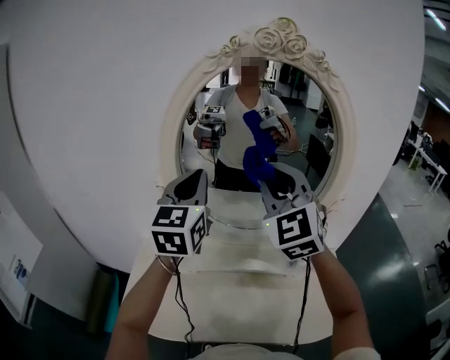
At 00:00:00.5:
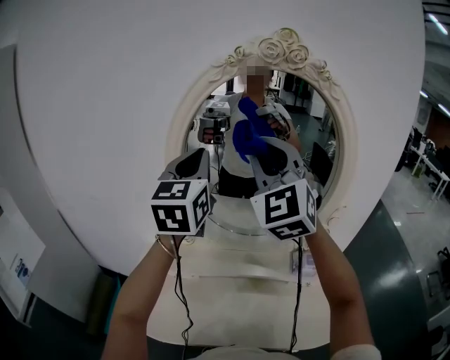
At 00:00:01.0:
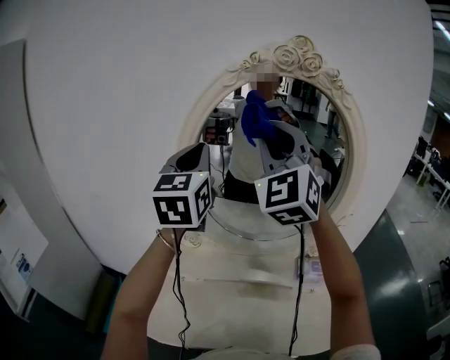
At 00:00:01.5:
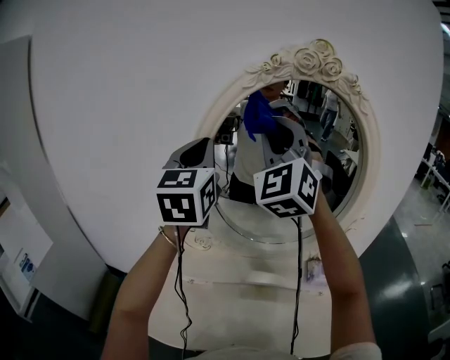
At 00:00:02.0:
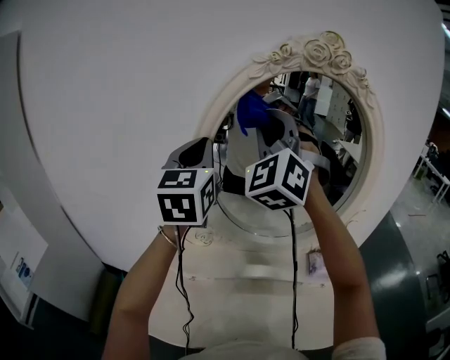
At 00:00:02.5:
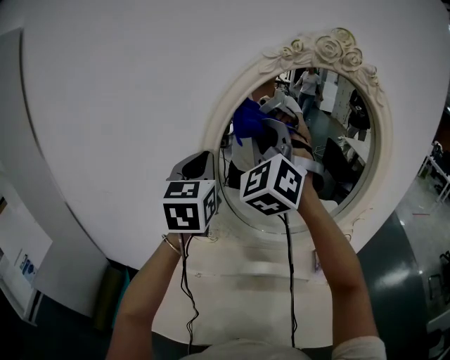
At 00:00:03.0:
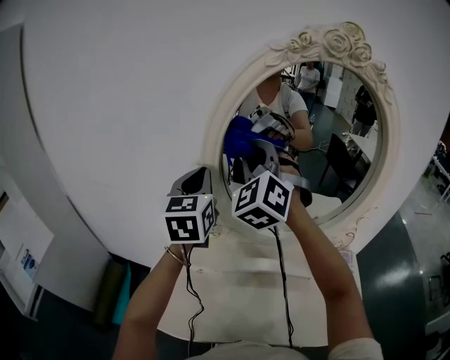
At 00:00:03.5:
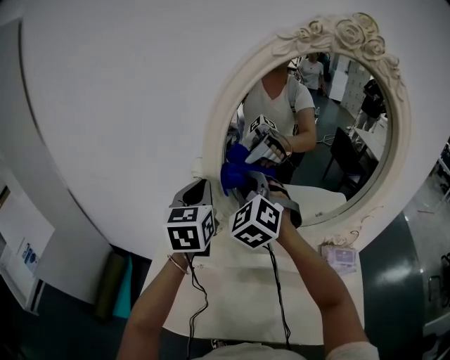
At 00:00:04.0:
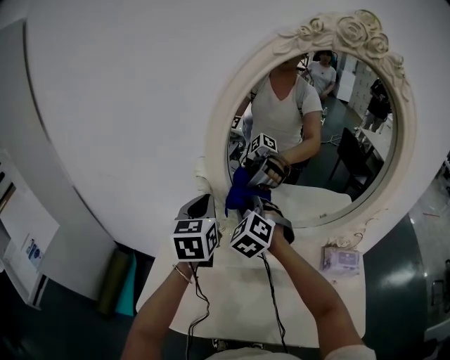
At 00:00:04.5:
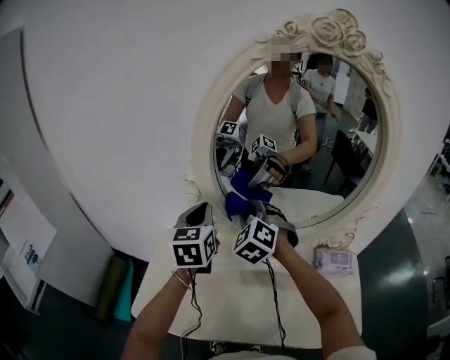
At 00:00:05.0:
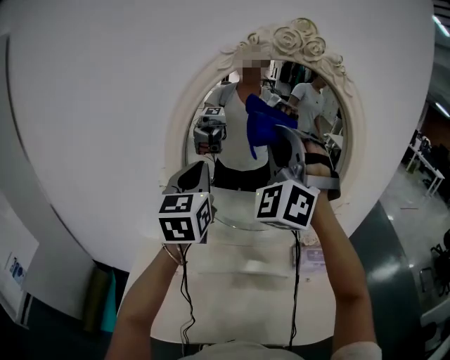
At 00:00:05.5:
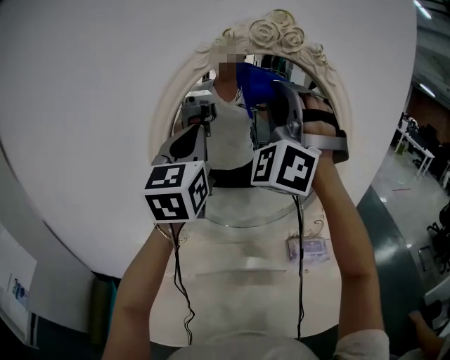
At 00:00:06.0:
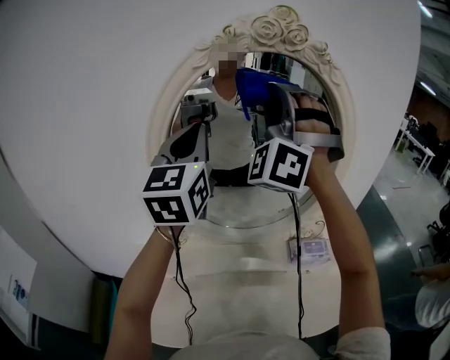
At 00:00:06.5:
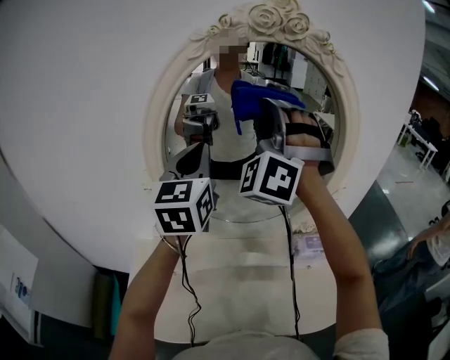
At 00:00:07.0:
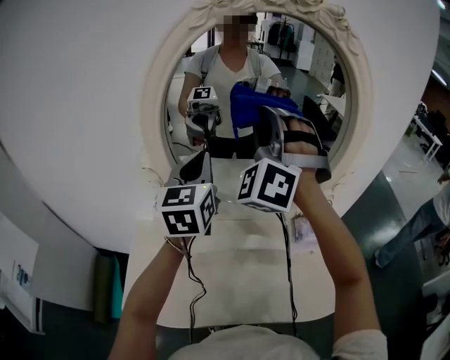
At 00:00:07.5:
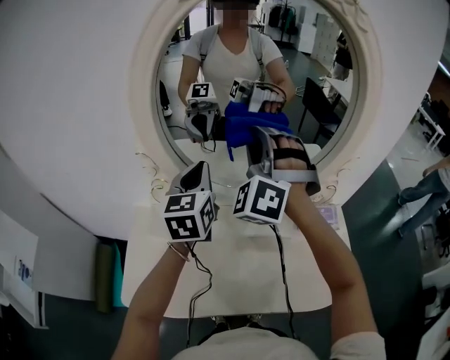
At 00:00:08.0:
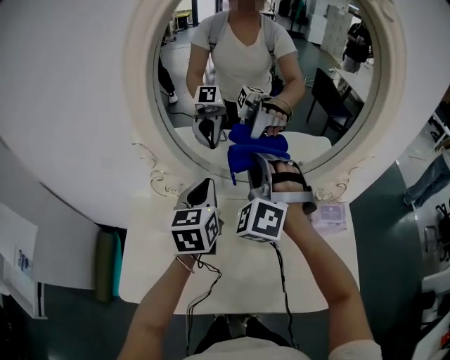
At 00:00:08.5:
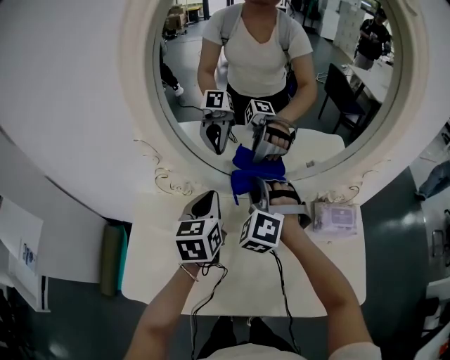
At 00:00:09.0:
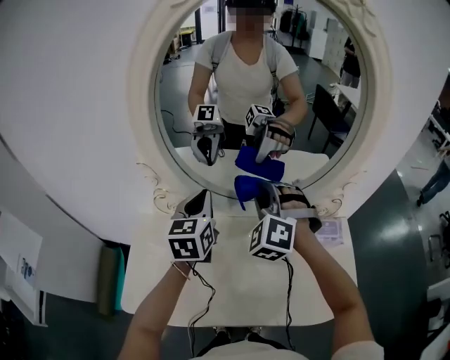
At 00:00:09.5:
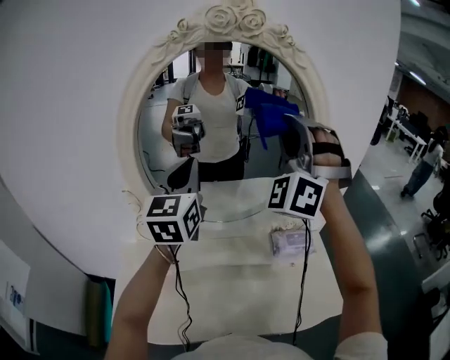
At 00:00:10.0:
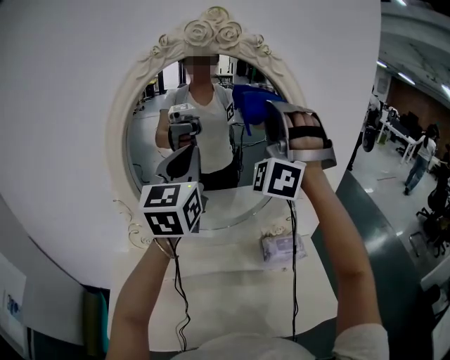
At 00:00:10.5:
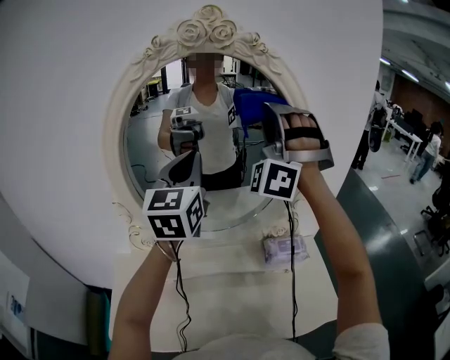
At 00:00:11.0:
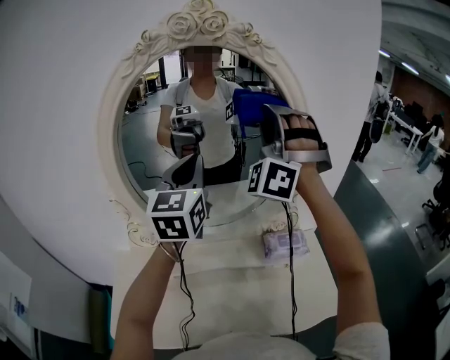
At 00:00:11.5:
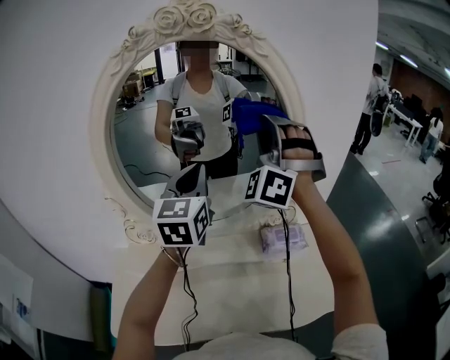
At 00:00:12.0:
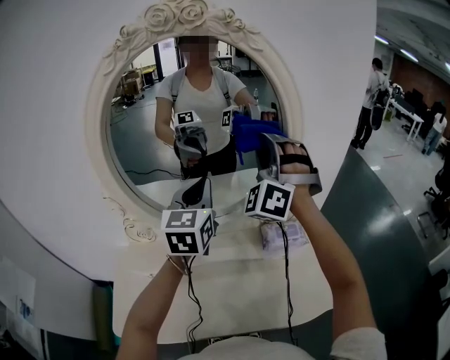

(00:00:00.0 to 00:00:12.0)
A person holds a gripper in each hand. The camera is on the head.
00:00:00.0 - 00:00:02.0: The left gripper goes roughly 10 cm to the left and upward. The right gripper heads upward, to the left and forward, covering approximately 15 cm, and swivels about 30 degrees.
00:00:02.0 - 00:00:04.0: The right gripper moves downward, roughly 35 cm, and angles its fingers downward, by about 40 degrees, while the left gripper travels downward by approximately 20 cm, and changes its angle by approximately 20 degrees.
00:00:04.0 - 00:00:06.0: Both grippers travel together upward and to the right, approximately 35 cm. The left gripper changes its angle by some 30 degrees. The right gripper tilts its fingers roughly 50 degrees upward.
00:00:06.0 - 00:00:08.0: The two grippers go roughly 35 cm downward. The right gripper points its fingers some 40 degrees further downward. Meanwhile the left gripper tilts its fingers some 30 degrees downward.
00:00:08.0 - 00:00:10.0: The left gripper travels upward by roughly 30 cm, and rotates approximately 30 degrees, while the right gripper heads upward and to the right, covering some 35 cm, and points its fingers some 40 degrees further upward.
00:00:10.0 - 00:00:12.0: The left gripper goes some 15 cm downward and to the right. Meanwhile the right gripper moves downward, roughly 15 cm, and turns by some 20 degrees.

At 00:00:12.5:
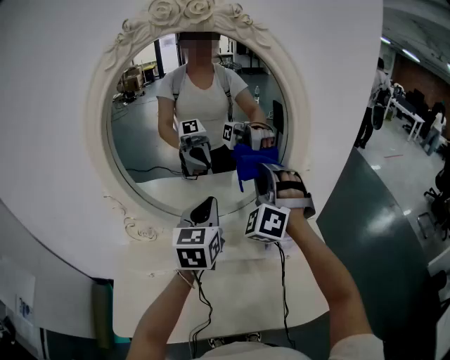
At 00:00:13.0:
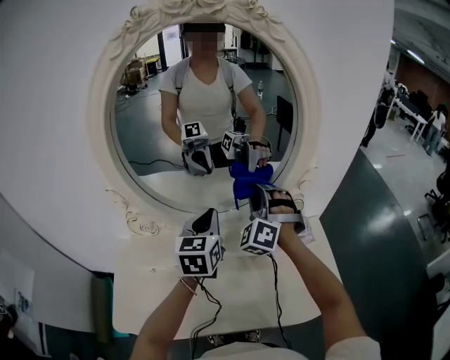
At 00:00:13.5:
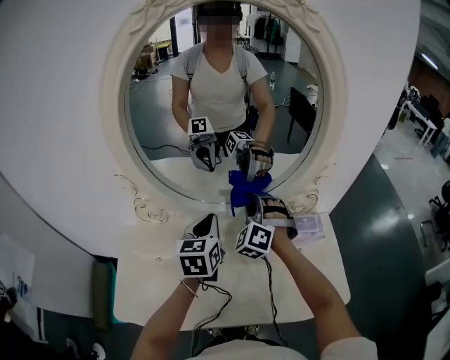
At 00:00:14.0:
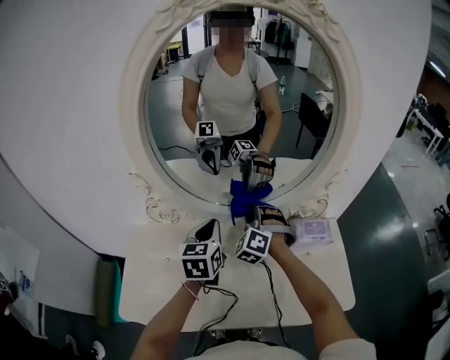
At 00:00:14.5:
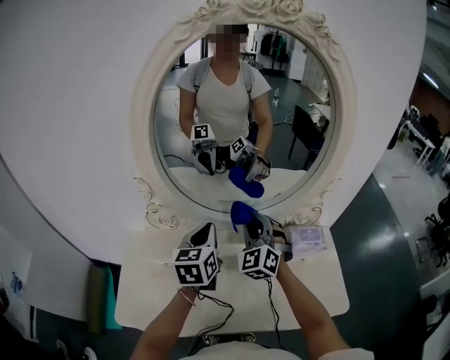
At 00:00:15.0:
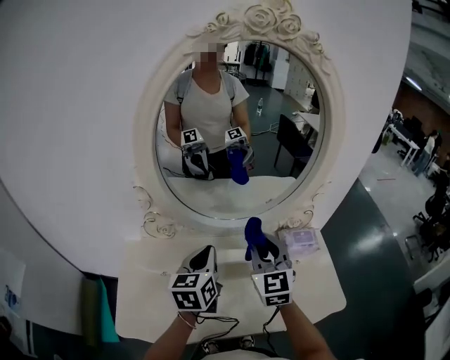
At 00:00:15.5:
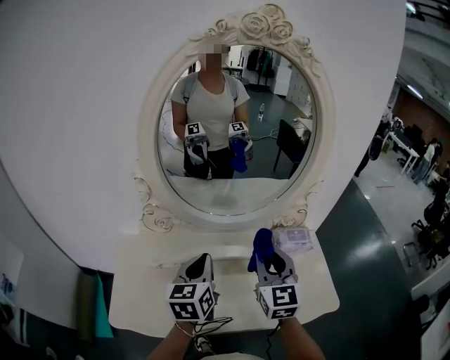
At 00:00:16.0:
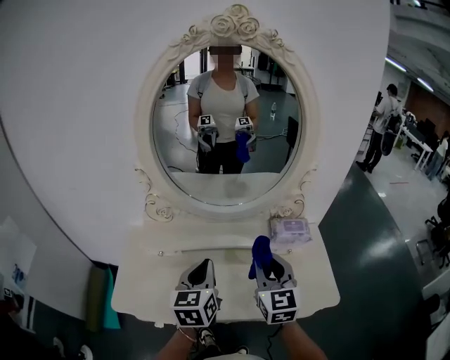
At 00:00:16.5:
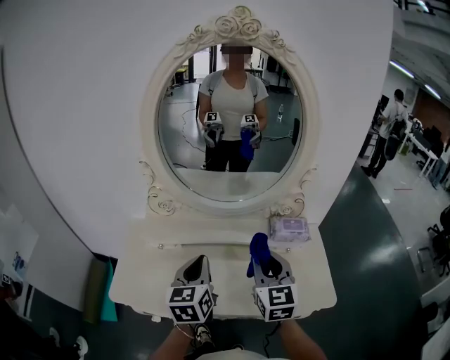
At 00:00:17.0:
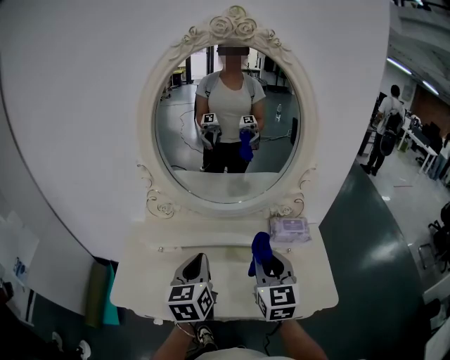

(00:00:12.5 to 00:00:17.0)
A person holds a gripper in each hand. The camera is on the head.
00:00:12.5 - 00:00:14.5: The right gripper is displaced downward, to the left and backward by roughly 20 cm, and rotates approximately 30 degrees; the left gripper goes roughly 15 cm to the left, downward and backward.
00:00:14.5 - 00:00:17.0: The right gripper travels backward and to the right by approximately 20 cm, and rotates around the line of its fingers by some 40 degrees, clockwise from behind. Meanwhile the left gripper heads backward, covering some 15 cm.

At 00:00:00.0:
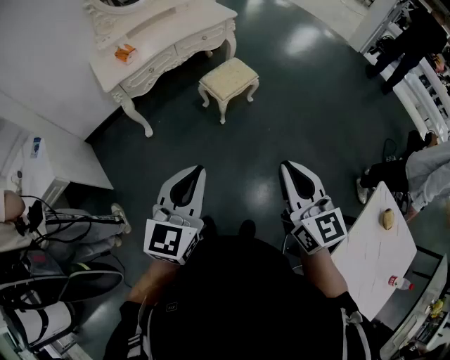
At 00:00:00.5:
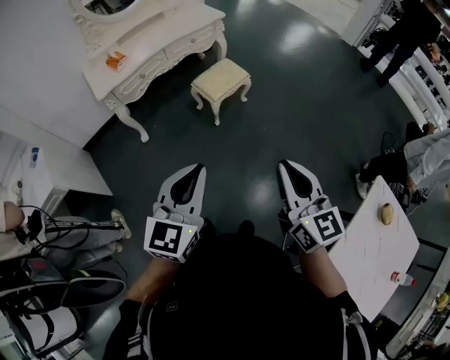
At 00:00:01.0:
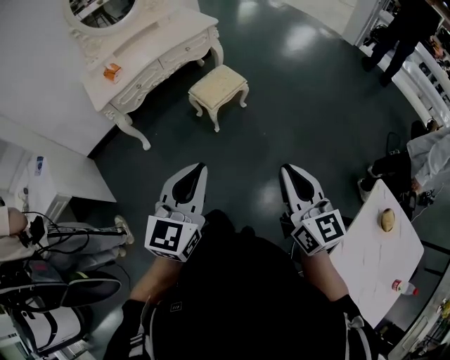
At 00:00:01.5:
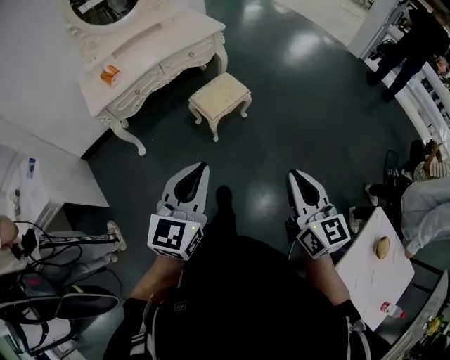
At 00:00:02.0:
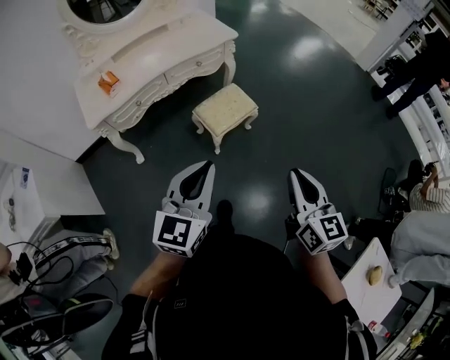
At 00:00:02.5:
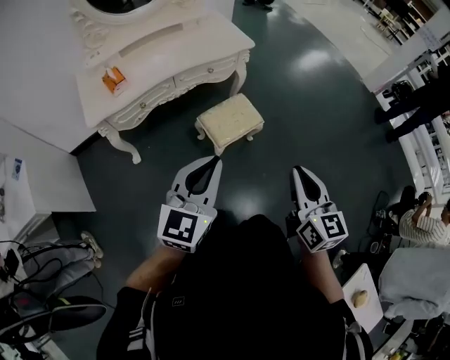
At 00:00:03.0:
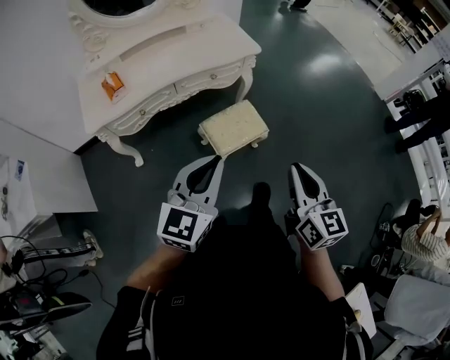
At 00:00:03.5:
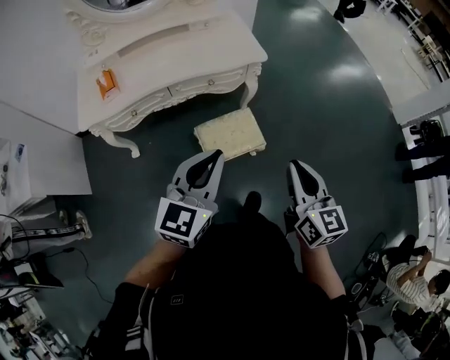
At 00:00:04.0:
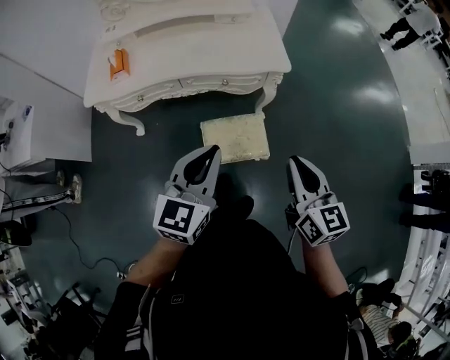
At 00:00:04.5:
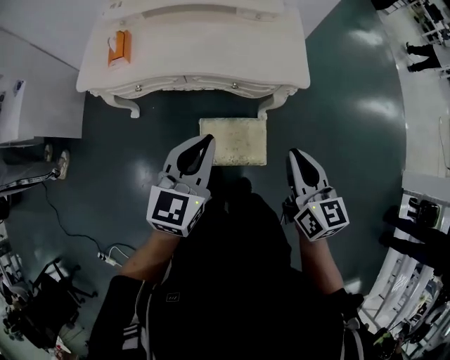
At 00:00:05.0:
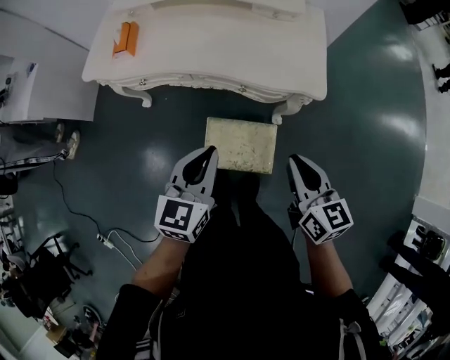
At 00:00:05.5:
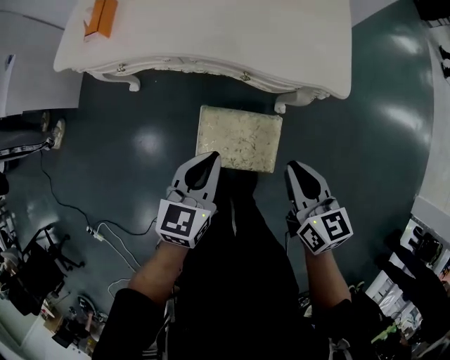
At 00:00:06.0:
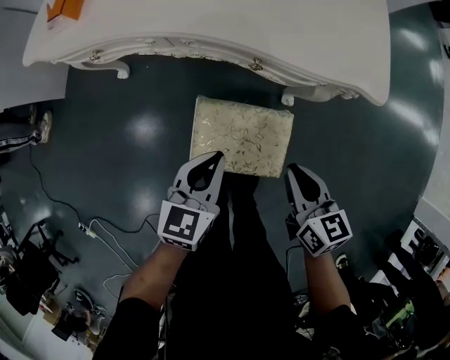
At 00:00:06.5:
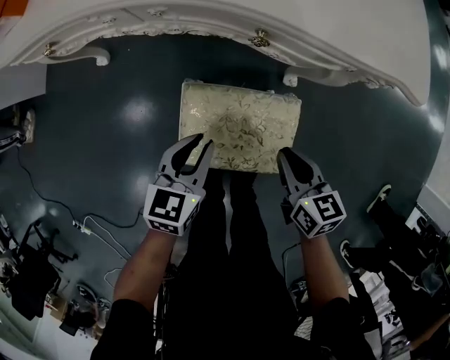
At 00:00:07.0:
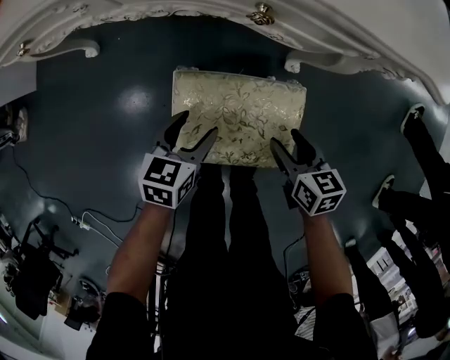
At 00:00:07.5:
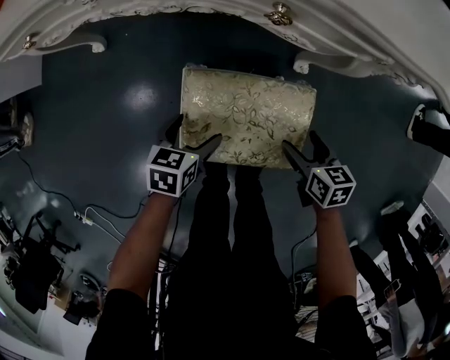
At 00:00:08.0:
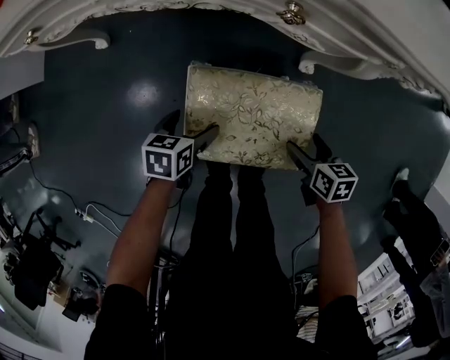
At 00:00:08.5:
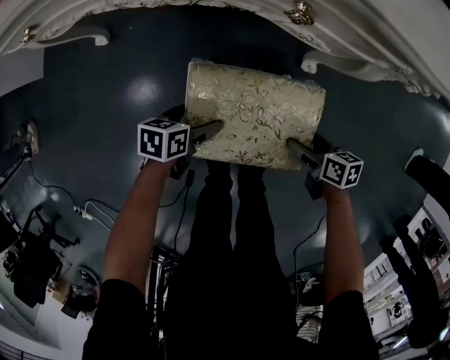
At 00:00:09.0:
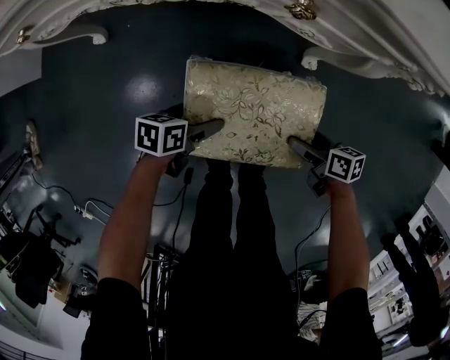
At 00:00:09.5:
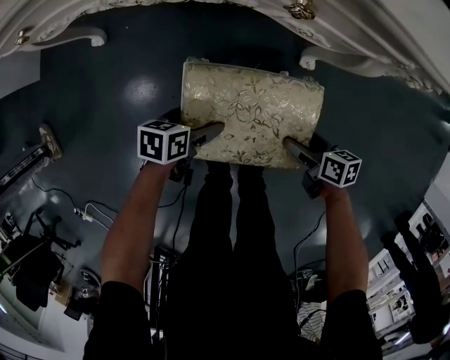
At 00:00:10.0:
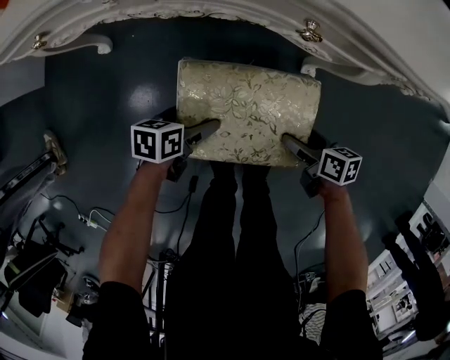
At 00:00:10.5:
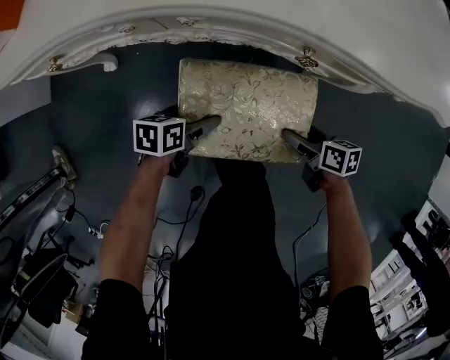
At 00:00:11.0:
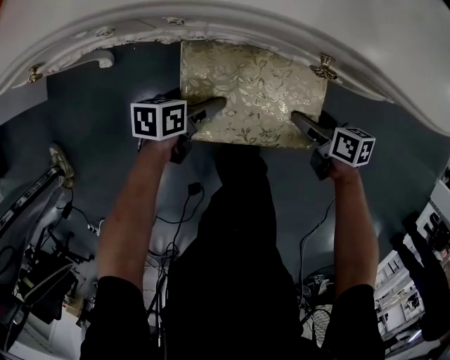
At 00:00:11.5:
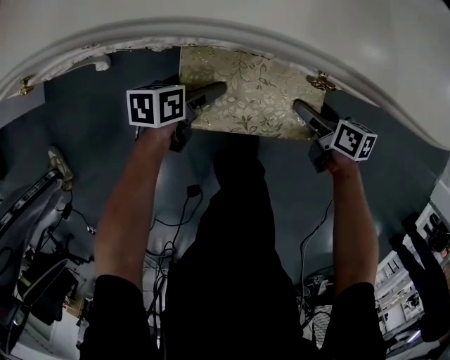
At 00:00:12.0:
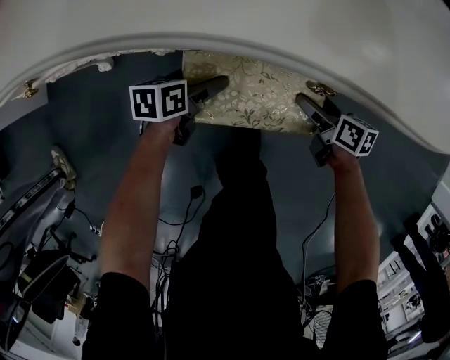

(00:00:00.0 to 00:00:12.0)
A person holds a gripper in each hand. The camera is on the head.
00:00:00.0 - 00:00:02.0: The two grippers go some 25 cm forward.
00:00:02.0 - 00:00:04.0: The right gripper ends up roughly 40 cm from where it was, and changes its angle by approximately 30 degrees. Meanwhile the left gripper moves about 40 cm, and turns by some 30 degrees.
00:00:04.0 - 00:00:06.0: The two grippers go roughly 40 cm downward and forward. The right gripper swivels some 30 degrees. The left gripper rotates about 30 degrees.
00:00:06.0 - 00:00:08.0: The grippers both shift downward by roughly 30 cm. The left gripper turns by roughly 30 degrees, and opens, while the right gripper changes its angle by about 30 degrees, and opens up.
00:00:10.0 - 00:00:12.0: The grippers make only small movements.
